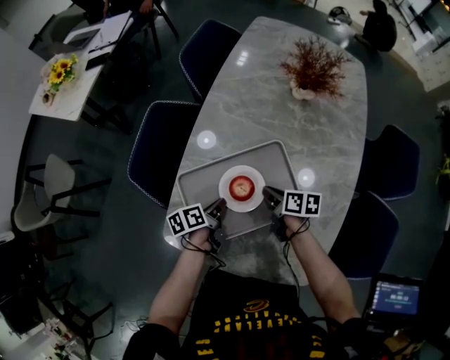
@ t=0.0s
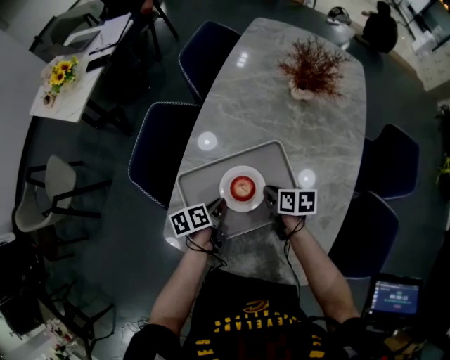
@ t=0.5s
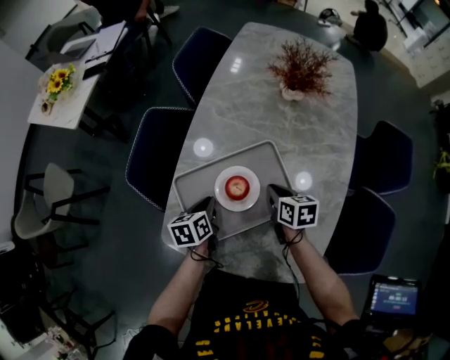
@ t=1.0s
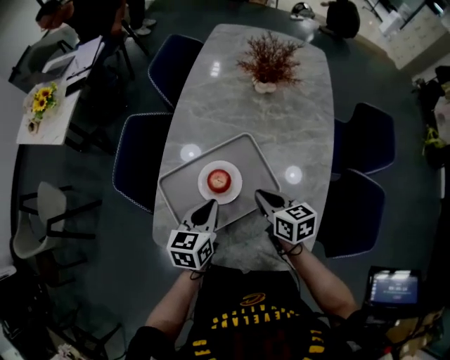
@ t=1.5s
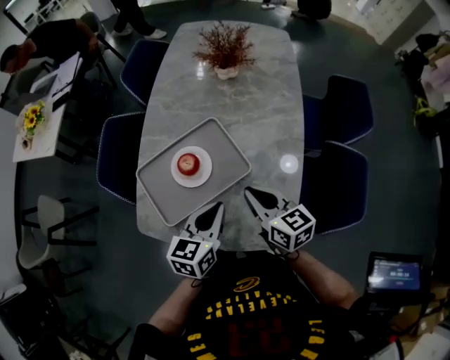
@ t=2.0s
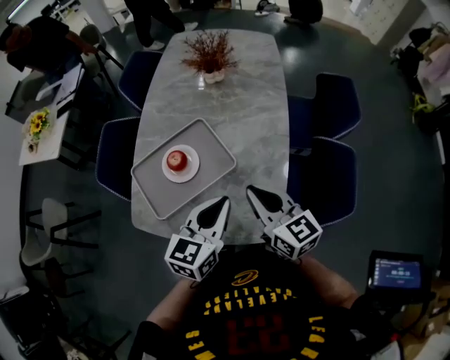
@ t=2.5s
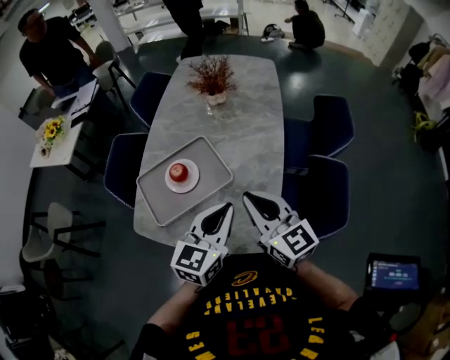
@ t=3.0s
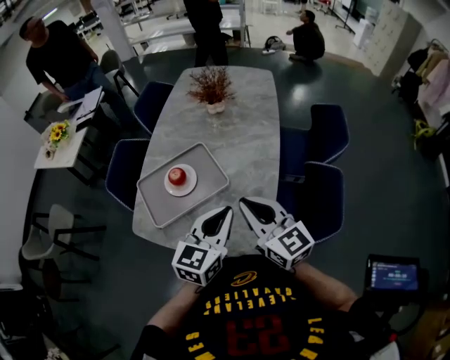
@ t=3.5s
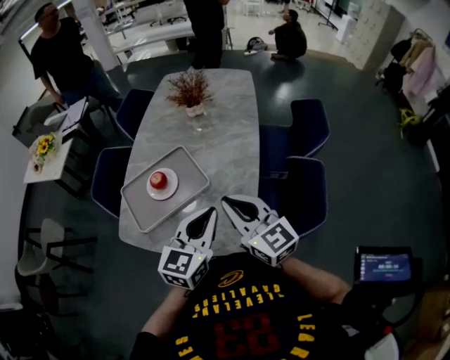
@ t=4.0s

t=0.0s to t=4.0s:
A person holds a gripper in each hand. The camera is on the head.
t=0.0s to t=2.0s: The right gripper shifts approximately 25 cm upward and backward, and changes its angle by roughly 40 degrees. The left gripper heads upward, to the right and backward, covering some 25 cm, and twists approximately 60 degrees clockwise, seen from behind.
t=2.0s to t=4.0s: The left gripper moves to the right, upward and backward, some 20 cm, and changes its angle by some 20 degrees. Meanwhile the right gripper heads upward, backward and to the right, covering about 20 cm, and swivels some 30 degrees.

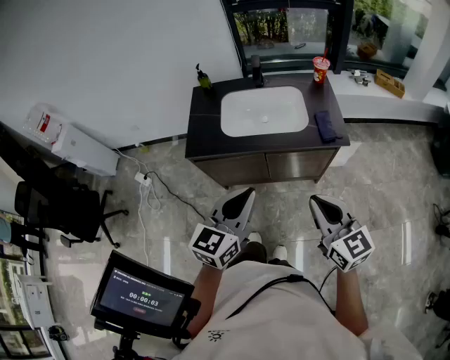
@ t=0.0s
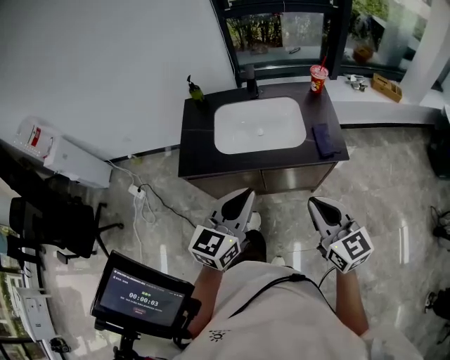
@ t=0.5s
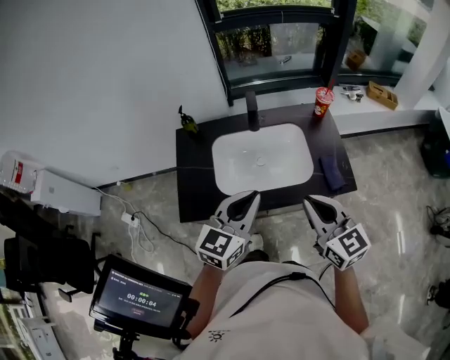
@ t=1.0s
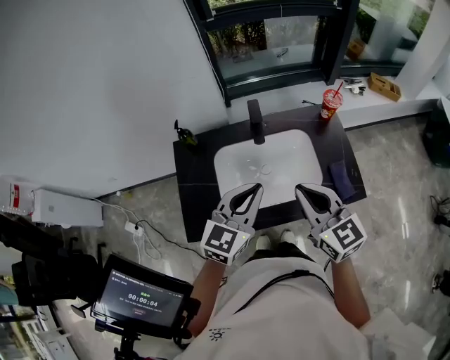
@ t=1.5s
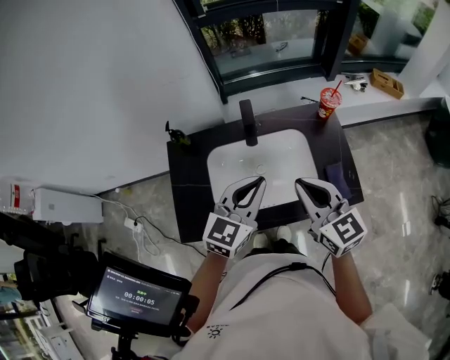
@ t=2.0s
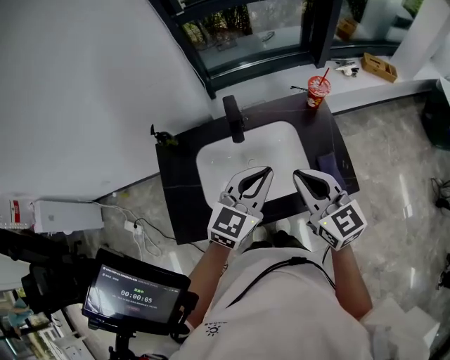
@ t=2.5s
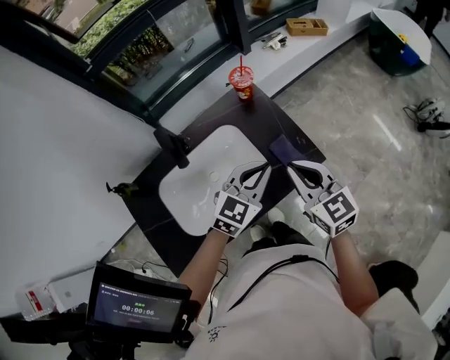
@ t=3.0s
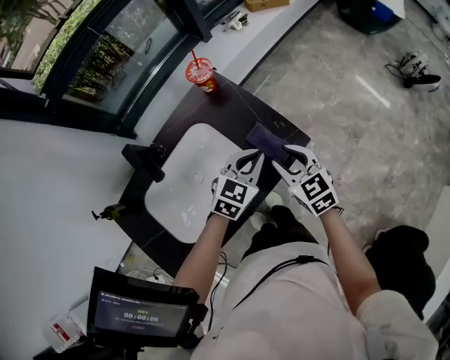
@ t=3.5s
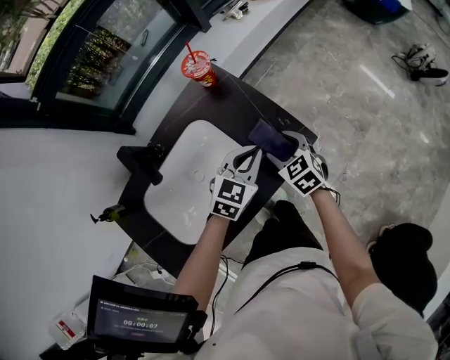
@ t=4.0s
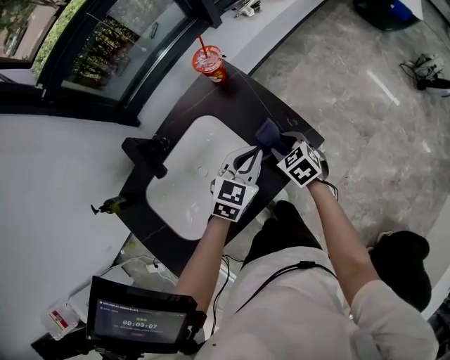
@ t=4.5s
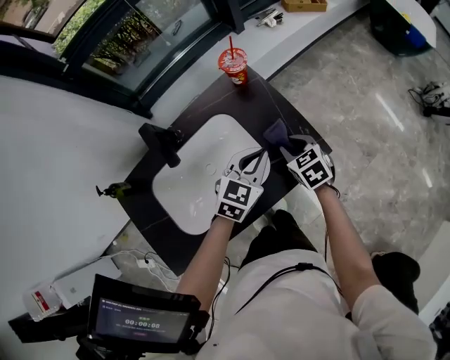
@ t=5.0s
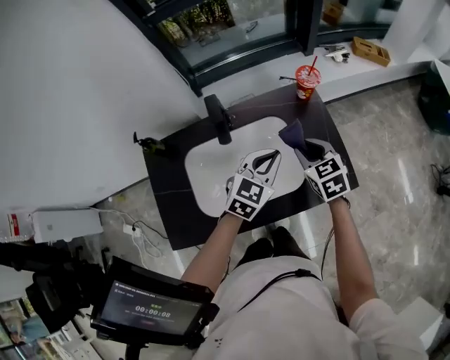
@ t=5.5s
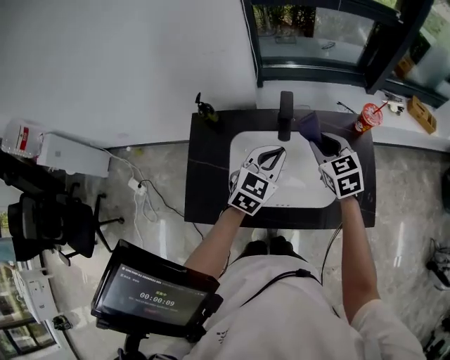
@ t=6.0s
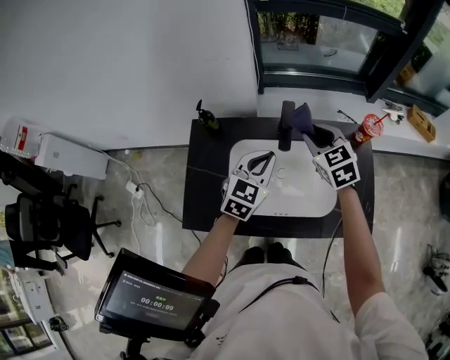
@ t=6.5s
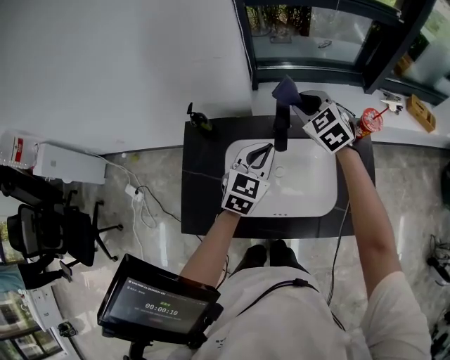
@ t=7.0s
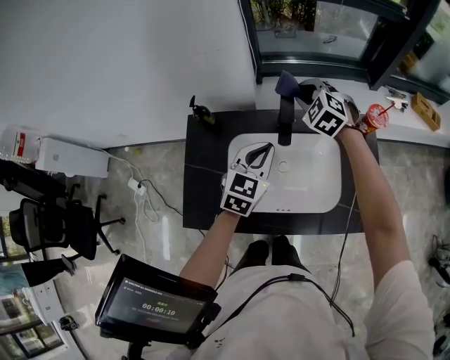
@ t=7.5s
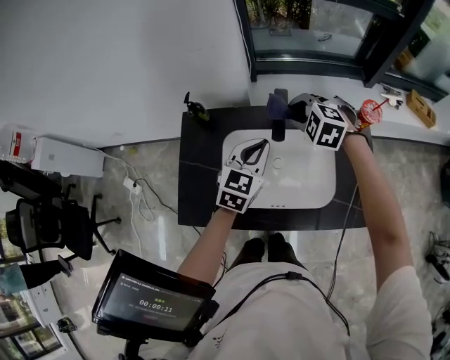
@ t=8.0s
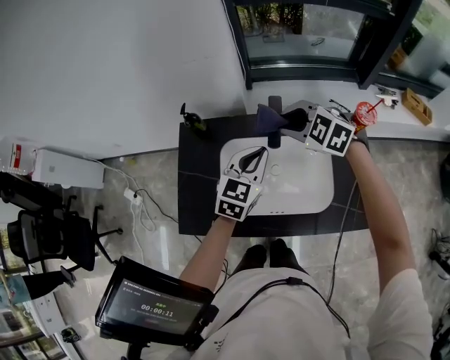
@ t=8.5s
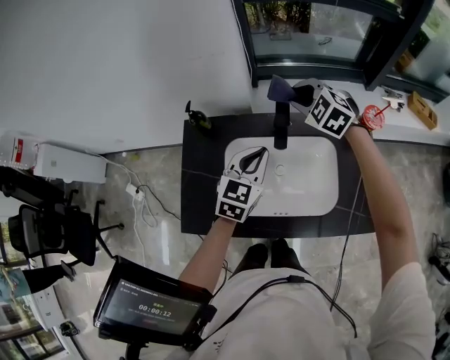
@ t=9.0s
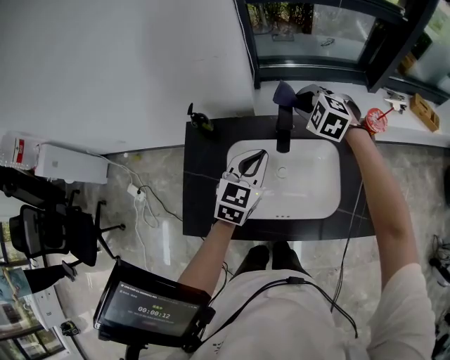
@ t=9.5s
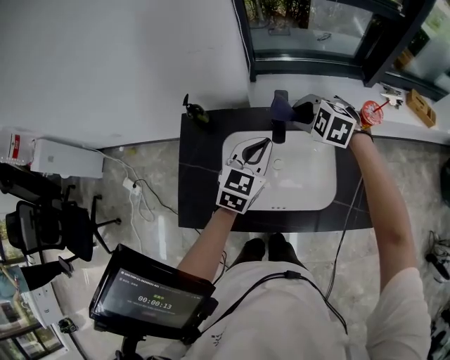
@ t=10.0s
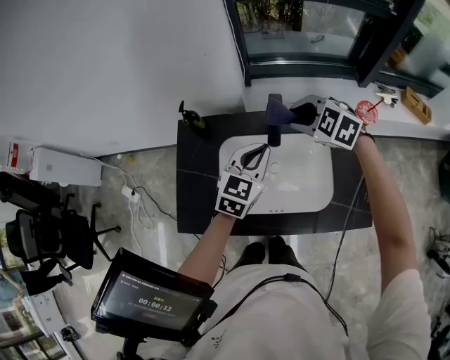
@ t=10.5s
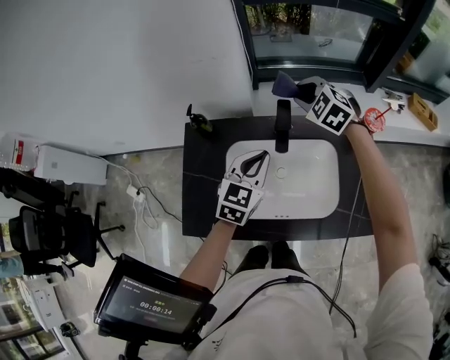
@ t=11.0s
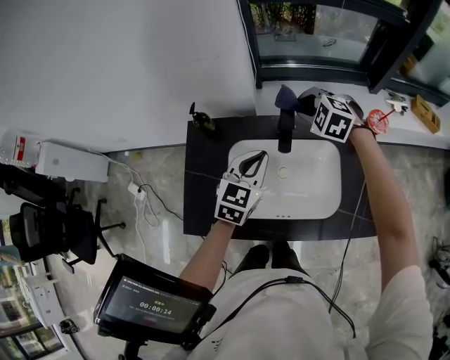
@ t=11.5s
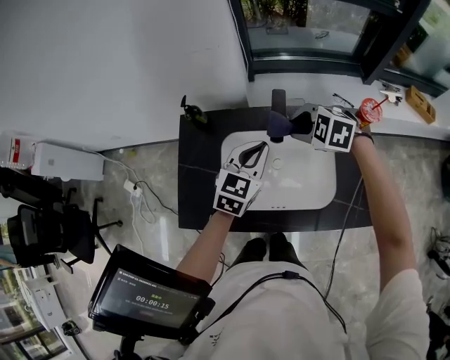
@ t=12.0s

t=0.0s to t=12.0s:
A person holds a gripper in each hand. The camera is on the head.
t=0.0s to t=2.0s: Both grippers travel together forward, roughly 35 cm.
t=2.0s to t=4.0s: The right gripper heads downward, covering roughly 25 cm, points its fingers about 30 degrees further downward, and opens up, while the left gripper shifts by about 30 cm, and rotates some 40 degrees.
t=4.0s to t=6.0s: The right gripper moves some 30 cm, rotates approximately 30 degrees, and closes its fingers. Meanwhile the left gripper ends up some 30 cm from where it was, and changes its angle by some 40 degrees.
t=6.0s to t=8.0s: The right gripper is displaced forward and to the left by some 10 cm, and twists about 50 degrees counterclockwise, seen from behind.
t=8.0s to t=10.0s: The right gripper goes forward and returns, some 5 cm each way.
t=10.0s to t=12.0s: The right gripper travels forward and back again, some 10 cm each way.

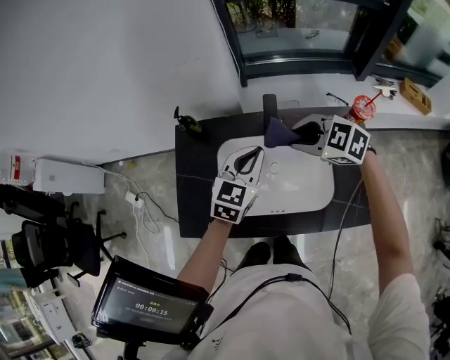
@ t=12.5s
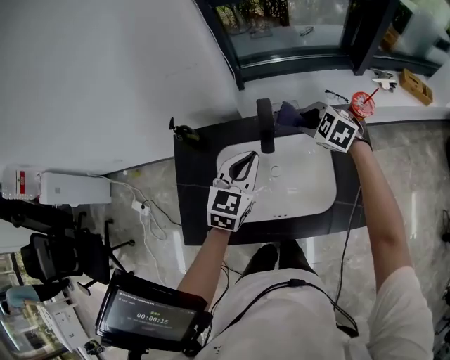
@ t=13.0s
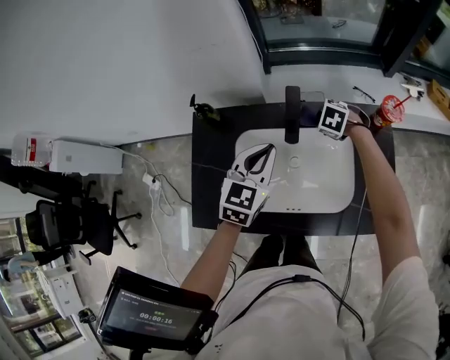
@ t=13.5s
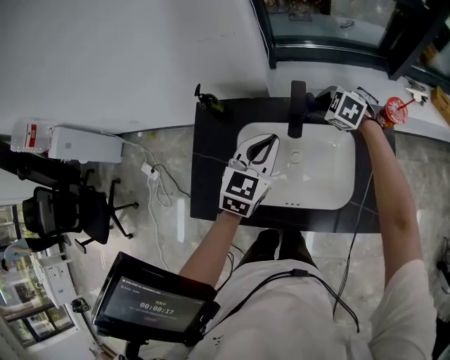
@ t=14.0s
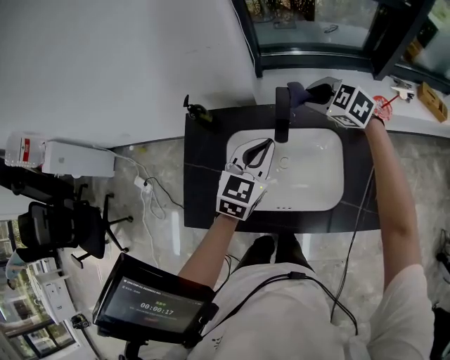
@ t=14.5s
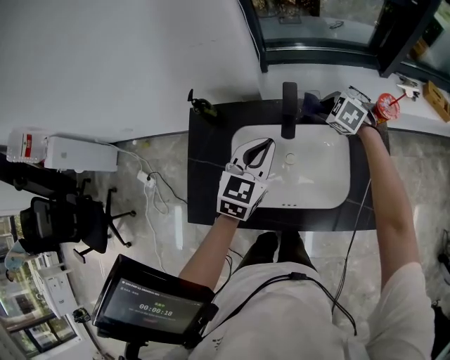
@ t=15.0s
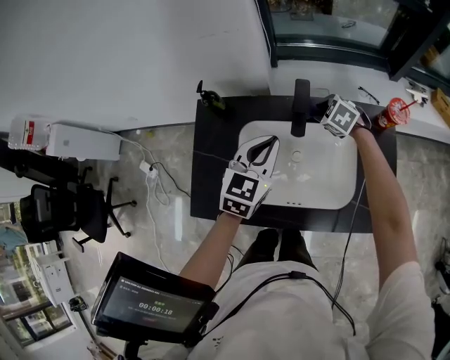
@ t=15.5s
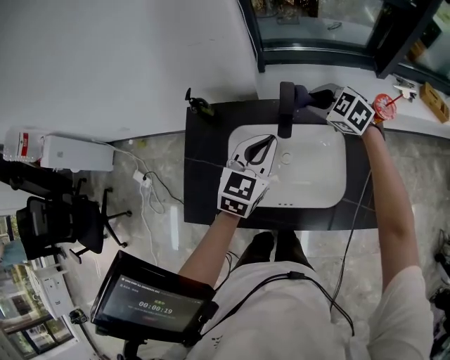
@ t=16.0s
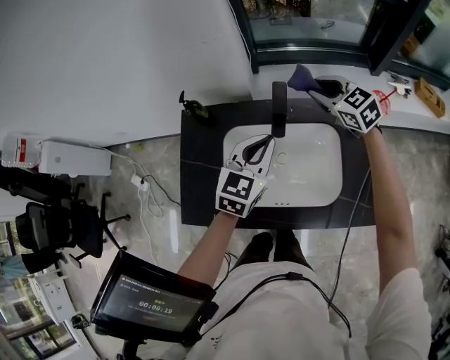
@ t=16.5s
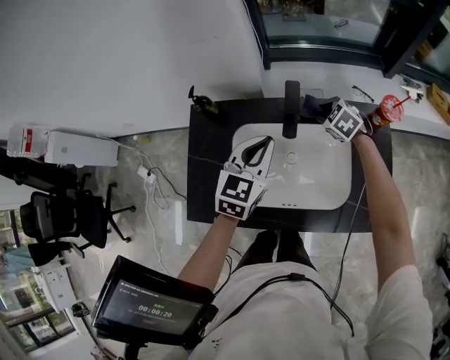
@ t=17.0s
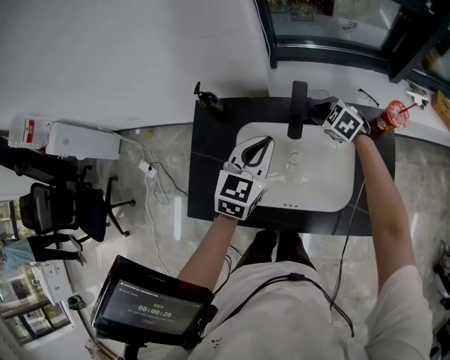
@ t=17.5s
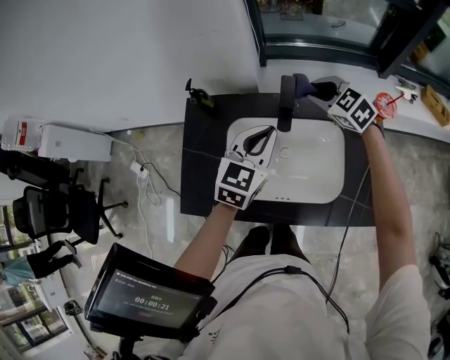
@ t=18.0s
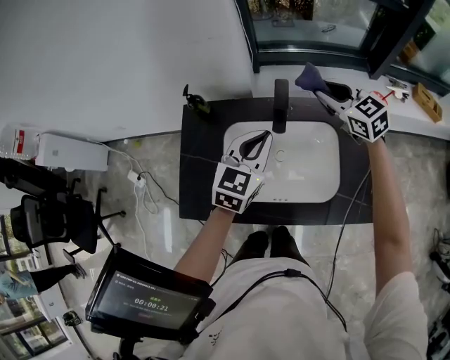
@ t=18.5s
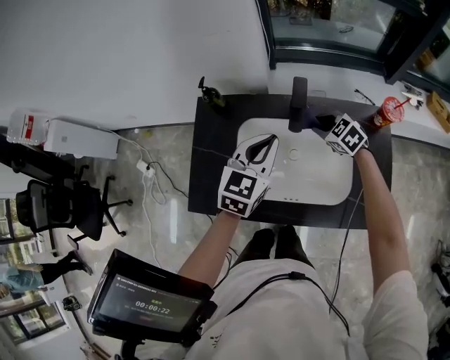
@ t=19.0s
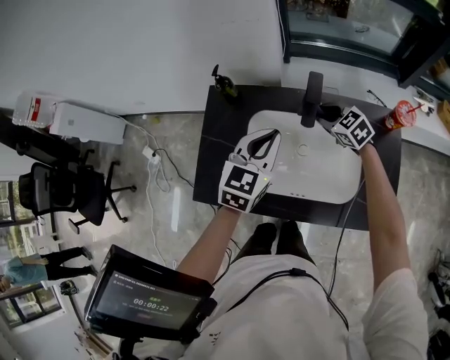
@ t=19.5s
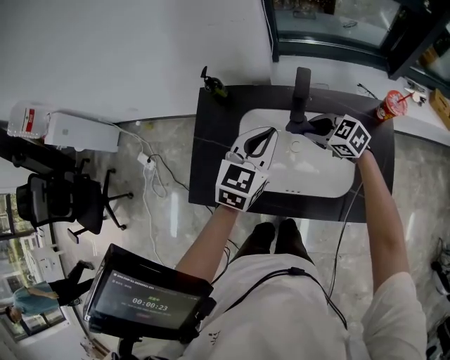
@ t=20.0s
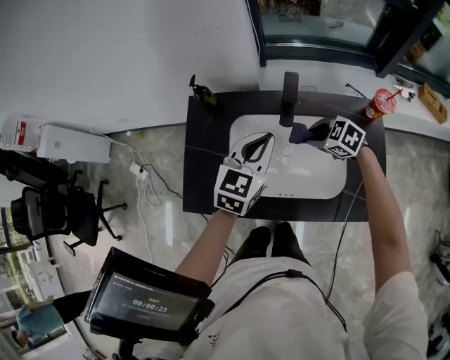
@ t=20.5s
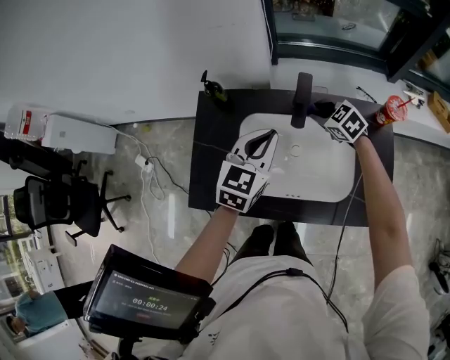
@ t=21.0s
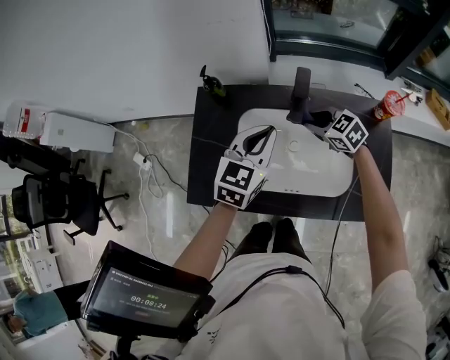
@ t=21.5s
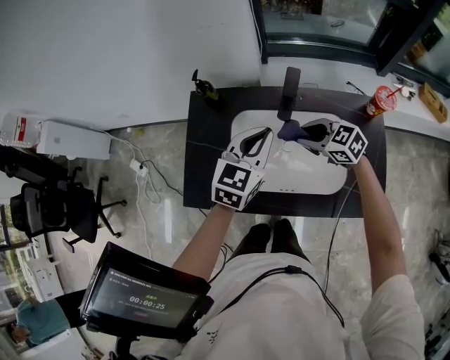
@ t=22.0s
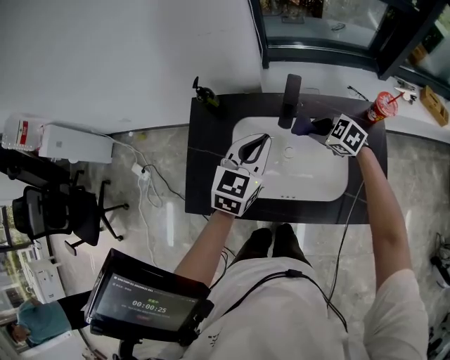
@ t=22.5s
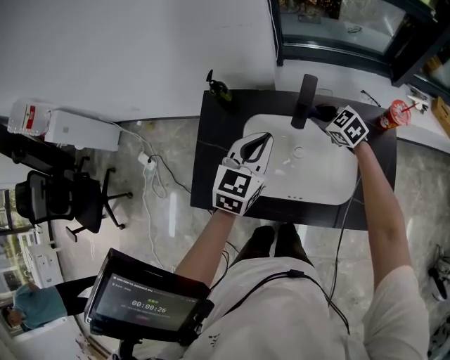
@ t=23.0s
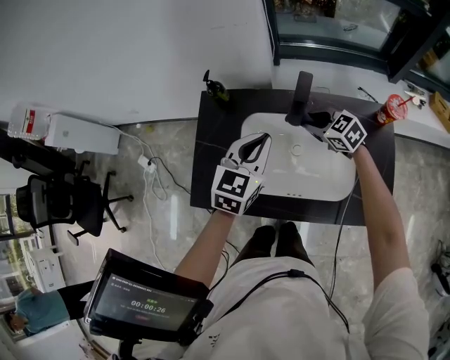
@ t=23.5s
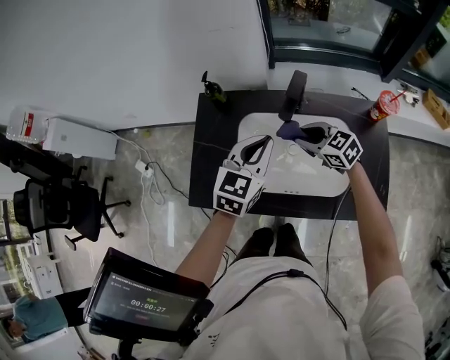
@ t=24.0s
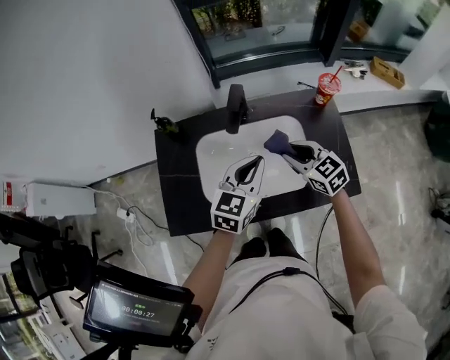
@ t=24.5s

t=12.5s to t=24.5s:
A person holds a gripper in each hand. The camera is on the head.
t=12.5s to t=14.5s: The right gripper heads forward, covering roughly 10 cm, and travels downward and back again, about 20 cm each way.
t=14.5s to t=16.5s: The right gripper travels downward and back again, approximately 15 cm each way, and rotates about 20 degrees.
t=16.5s to t=18.5s: The right gripper goes downward and returns, approximately 15 cm each way.
t=18.5s to t=20.5s: The right gripper moves downward, backward and to the left, some 20 cm, and swivels roughly 40 degrees.
t=20.5s to t=22.5s: The right gripper reaches approximately 10 cm forward, then returns.
t=22.5s to t=24.5s: The right gripper is displaced backward and upward by some 10 cm, and swivels some 40 degrees, while the left gripper shifts approximately 10 cm backward and to the right.
